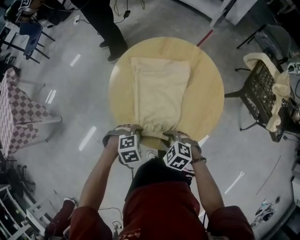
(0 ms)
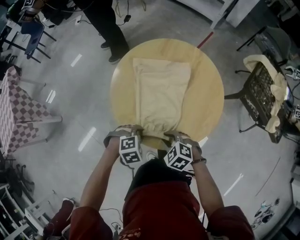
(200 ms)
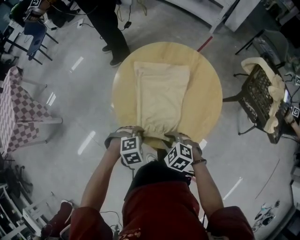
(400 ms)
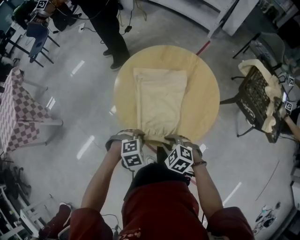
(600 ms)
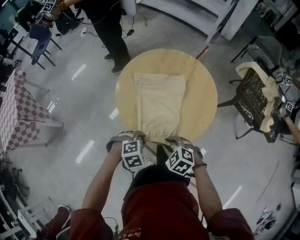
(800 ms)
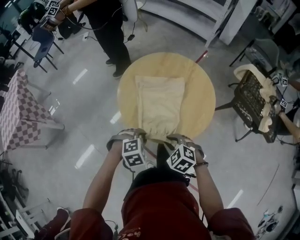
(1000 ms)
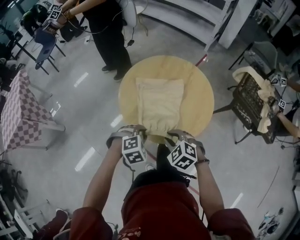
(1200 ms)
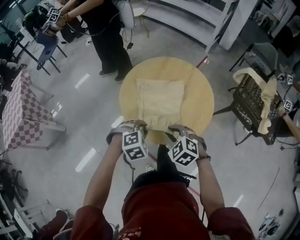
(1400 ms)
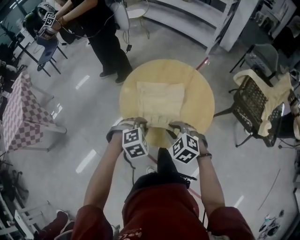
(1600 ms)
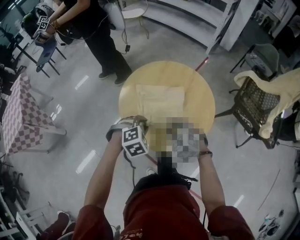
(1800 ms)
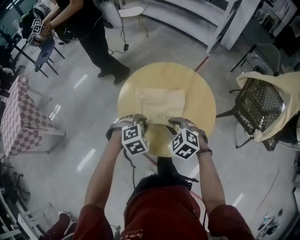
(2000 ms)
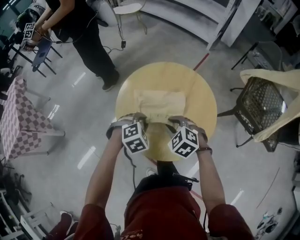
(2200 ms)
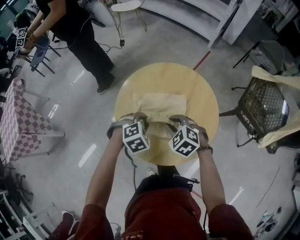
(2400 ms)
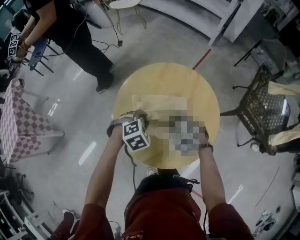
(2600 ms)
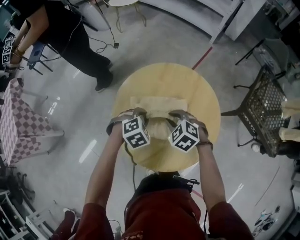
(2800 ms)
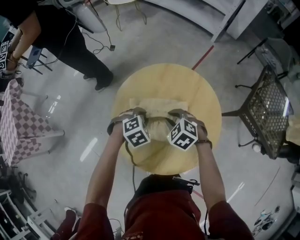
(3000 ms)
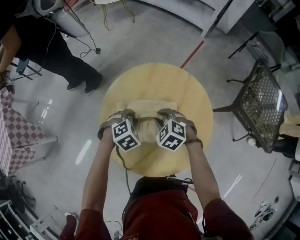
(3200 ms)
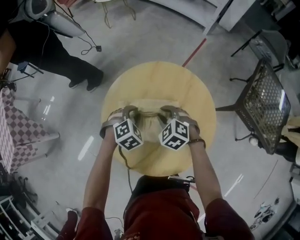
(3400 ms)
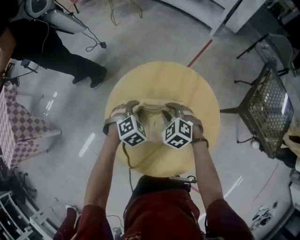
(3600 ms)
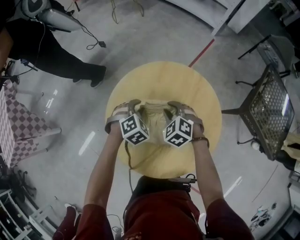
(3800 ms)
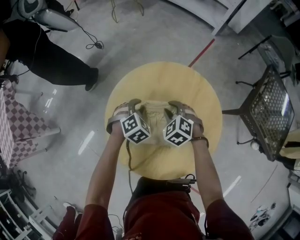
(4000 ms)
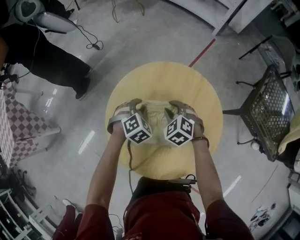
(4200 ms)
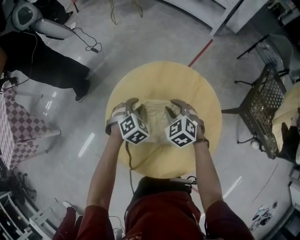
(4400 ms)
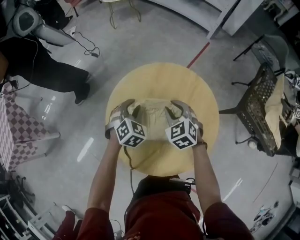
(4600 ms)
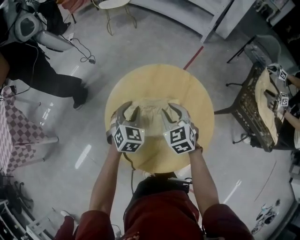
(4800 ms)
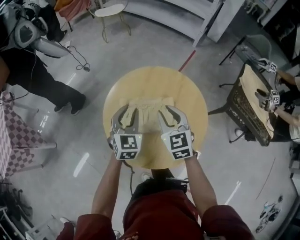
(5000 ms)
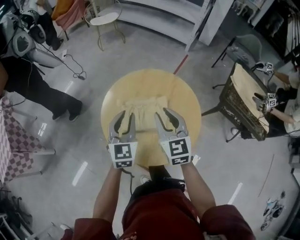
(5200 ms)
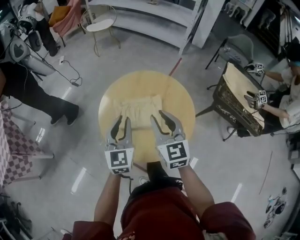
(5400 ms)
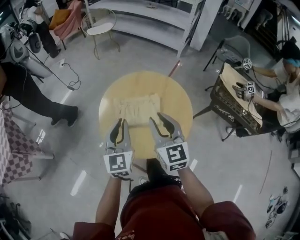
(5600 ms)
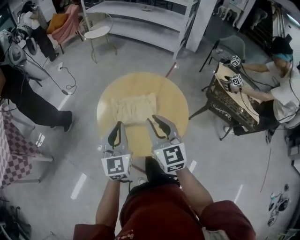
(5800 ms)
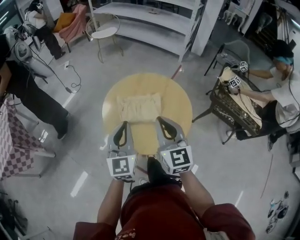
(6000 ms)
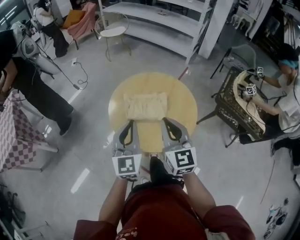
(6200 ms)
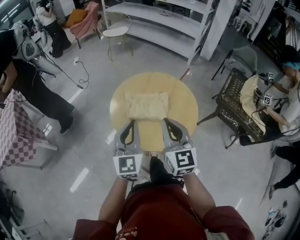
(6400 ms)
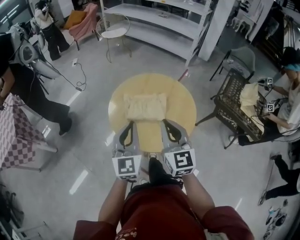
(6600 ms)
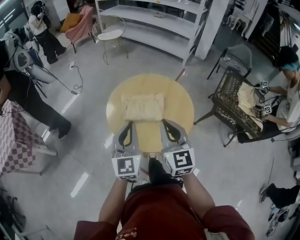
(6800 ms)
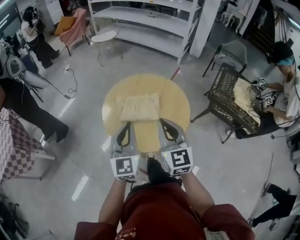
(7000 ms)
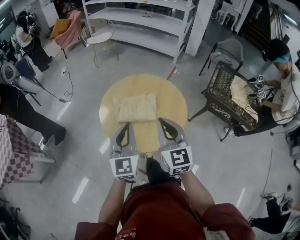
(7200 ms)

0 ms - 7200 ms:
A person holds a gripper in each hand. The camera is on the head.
0 ms - 1400 ms: The grippers both shift upward by some 10 cm.
1400 ms - 2800 ms: The two grippers go approximately 20 cm forward.
2800 ms - 4400 ms: Both grippers travel together forward, approximately 10 cm.
4400 ms - 5800 ms: Both grippers move backward and upward, roughly 35 cm. The right gripper angles its fingers upward, by approximately 40 degrees. The left gripper angles its fingers upward, by roughly 50 degrees, and closes up.
5800 ms - 7200 ms: The left gripper shifts by about 5 cm; the right gripper goes approximately 5 cm backward.

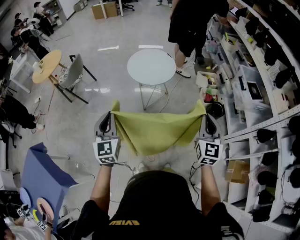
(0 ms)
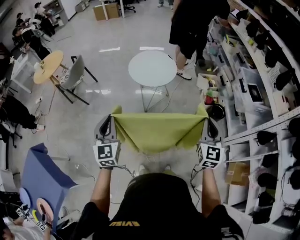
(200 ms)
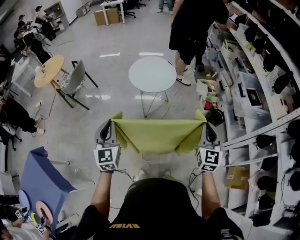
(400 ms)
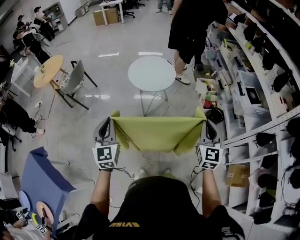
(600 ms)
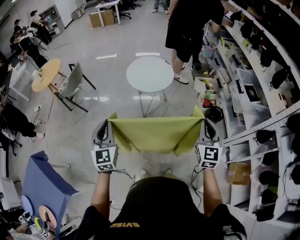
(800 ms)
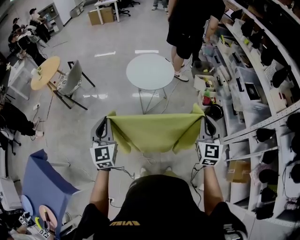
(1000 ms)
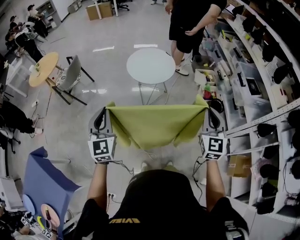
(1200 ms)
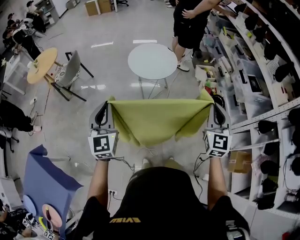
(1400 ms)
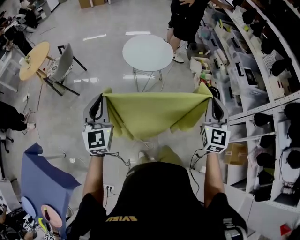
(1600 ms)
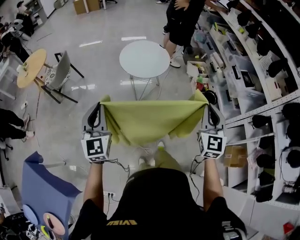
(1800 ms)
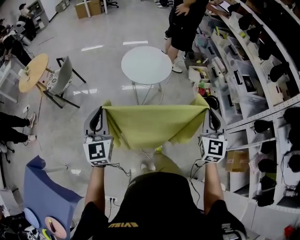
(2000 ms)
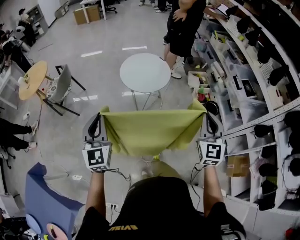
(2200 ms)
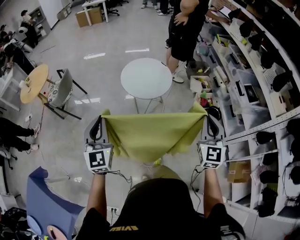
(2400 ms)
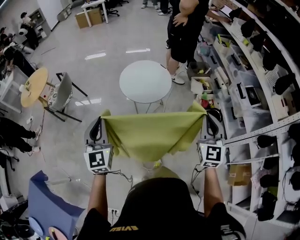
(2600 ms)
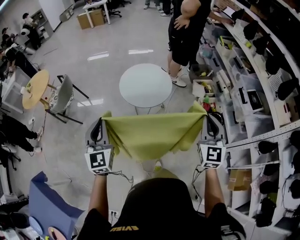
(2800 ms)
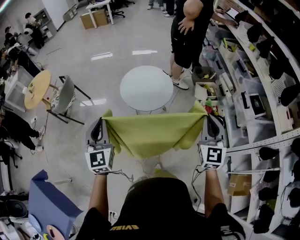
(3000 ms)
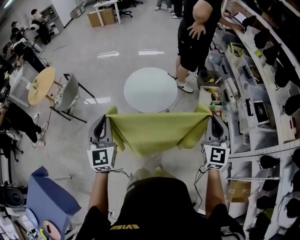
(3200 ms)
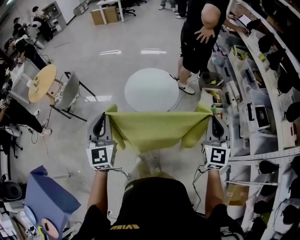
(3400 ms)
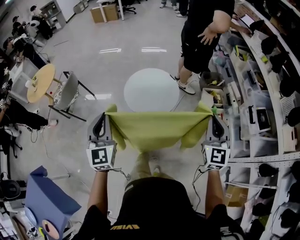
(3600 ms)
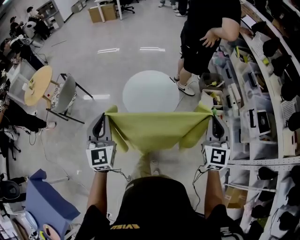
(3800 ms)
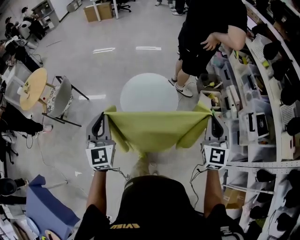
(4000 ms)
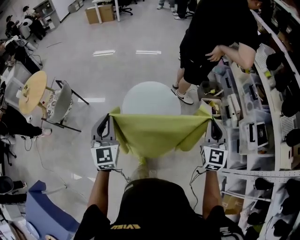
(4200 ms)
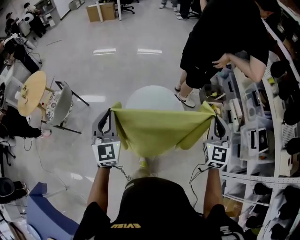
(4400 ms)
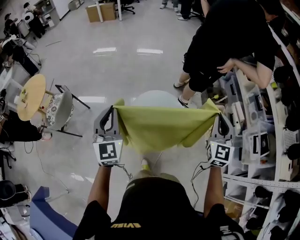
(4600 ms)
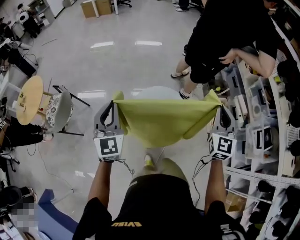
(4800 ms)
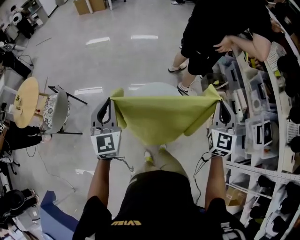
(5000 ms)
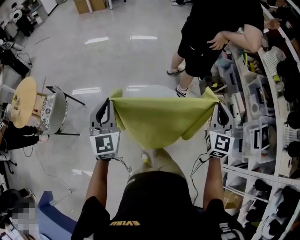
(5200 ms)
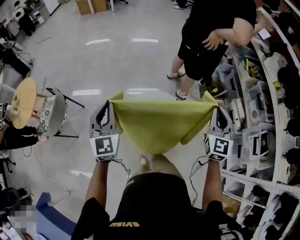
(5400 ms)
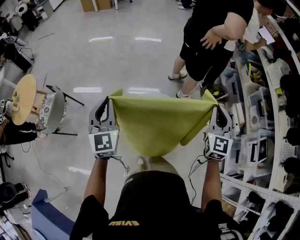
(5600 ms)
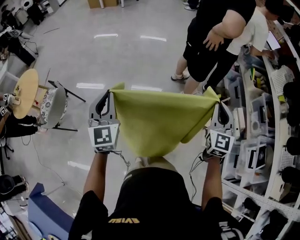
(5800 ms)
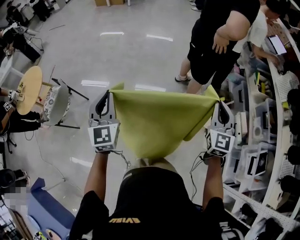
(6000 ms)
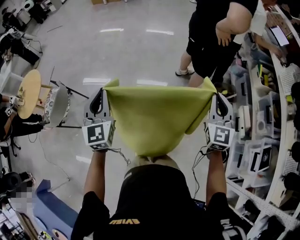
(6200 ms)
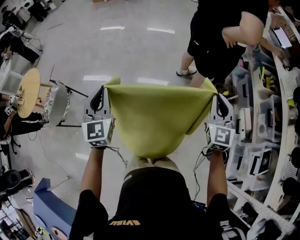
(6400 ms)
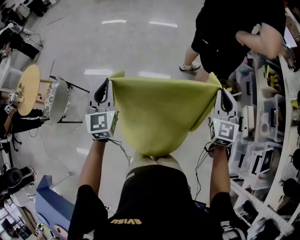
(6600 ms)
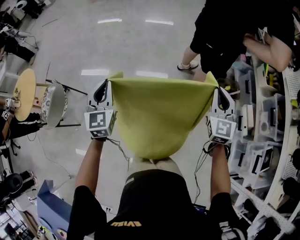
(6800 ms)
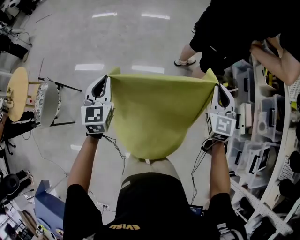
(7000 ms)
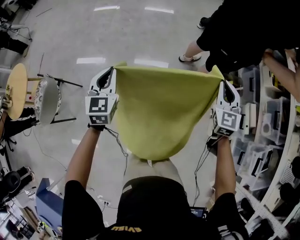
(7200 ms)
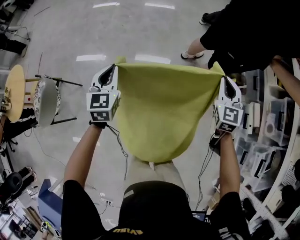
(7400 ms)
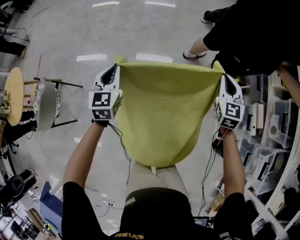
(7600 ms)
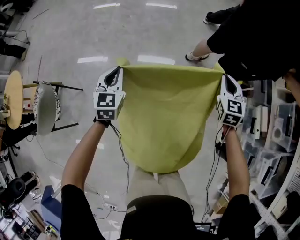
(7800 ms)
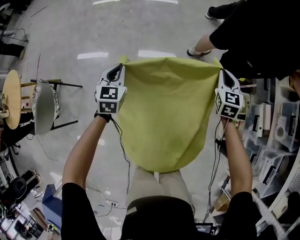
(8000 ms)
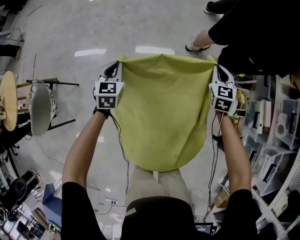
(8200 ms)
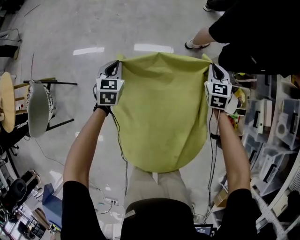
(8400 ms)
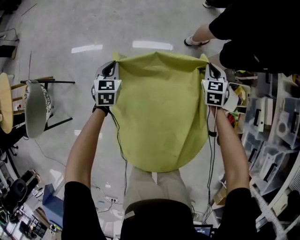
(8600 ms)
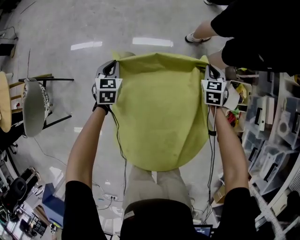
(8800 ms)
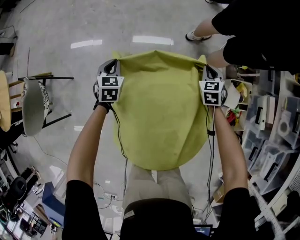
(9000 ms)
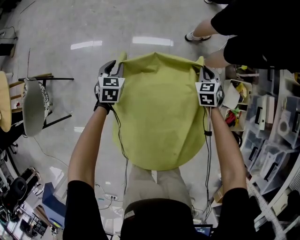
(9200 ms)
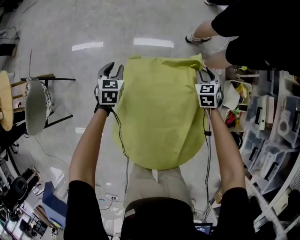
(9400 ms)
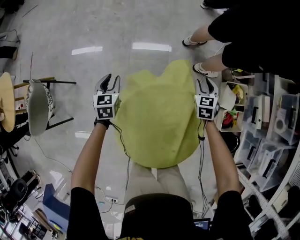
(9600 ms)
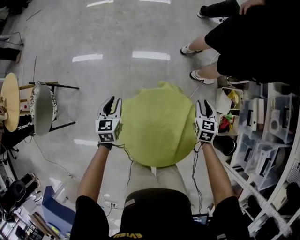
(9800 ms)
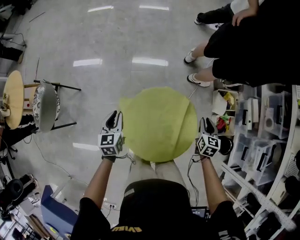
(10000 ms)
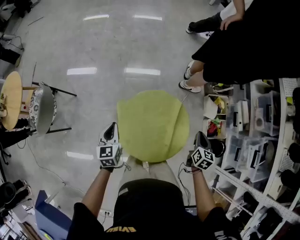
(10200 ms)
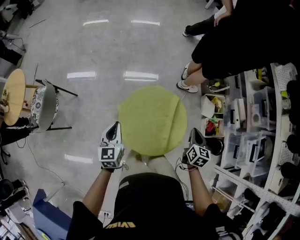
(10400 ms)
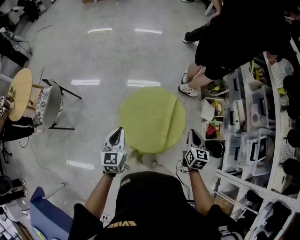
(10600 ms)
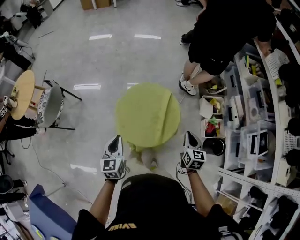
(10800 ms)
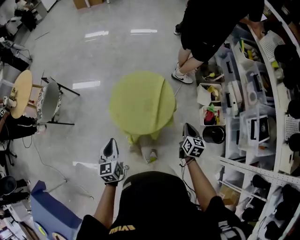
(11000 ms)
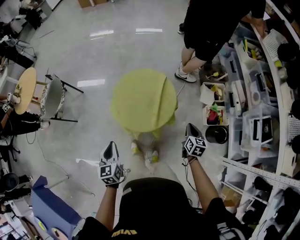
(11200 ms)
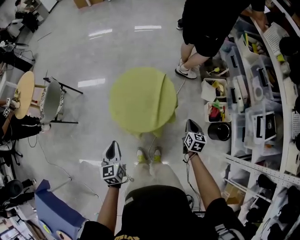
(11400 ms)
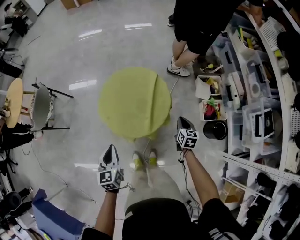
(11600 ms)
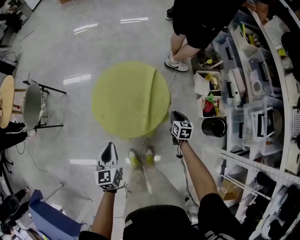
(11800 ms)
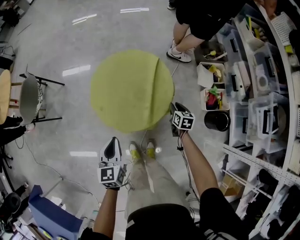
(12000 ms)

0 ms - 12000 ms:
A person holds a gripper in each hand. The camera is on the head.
0 ms - 1600 ms: Both grippers move to the left, some 10 cm.
1600 ms - 3000 ms: Both grippers travel together forward, roughly 20 cm.
3000 ms - 4400 ms: The grippers both shift forward by some 35 cm.
4400 ms - 6000 ms: The grippers both shift forward by approximately 25 cm.
6000 ms - 7600 ms: Both grippers travel together forward and downward, some 35 cm. The left gripper swivels some 20 degrees.
7600 ms - 9000 ms: The grippers both shift downward by about 25 cm. The right gripper changes its angle by about 20 degrees, while the left gripper turns by approximately 20 degrees.
9000 ms - 10400 ms: Both grippers move backward and upward, some 50 cm. The right gripper changes its angle by roughly 40 degrees, and opens, then closes again. The left gripper swivels roughly 20 degrees, and opens, then closes again.
10400 ms - 12000 ms: The left gripper is displaced backward, to the right and downward by approximately 30 cm; the right gripper heads downward, covering approximately 30 cm, and opens its fingers.

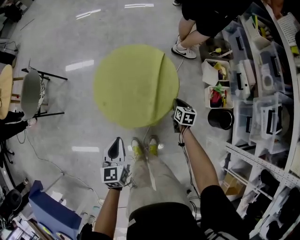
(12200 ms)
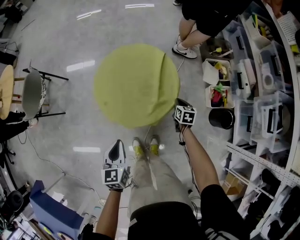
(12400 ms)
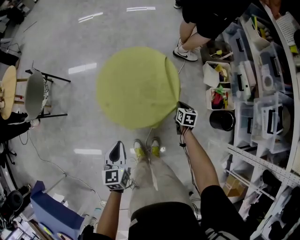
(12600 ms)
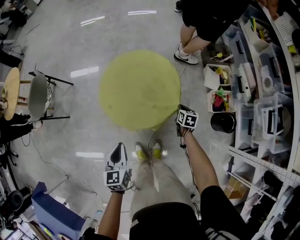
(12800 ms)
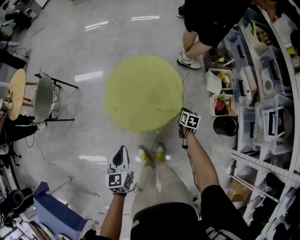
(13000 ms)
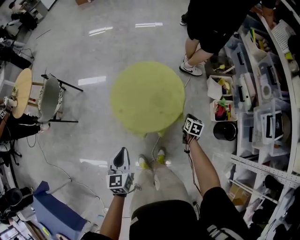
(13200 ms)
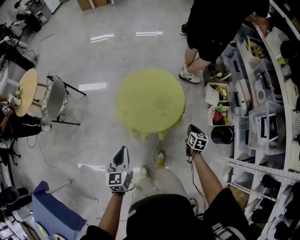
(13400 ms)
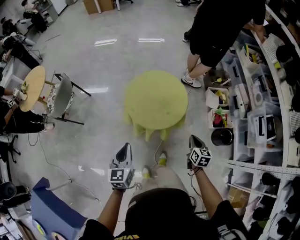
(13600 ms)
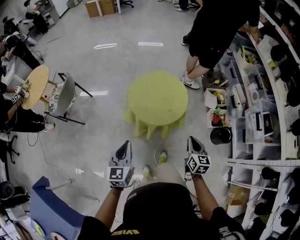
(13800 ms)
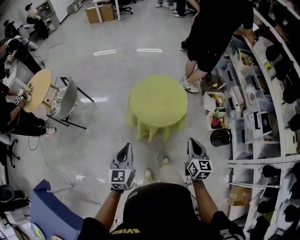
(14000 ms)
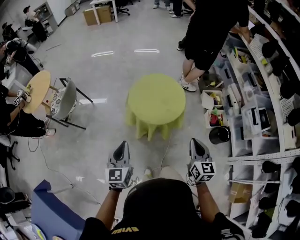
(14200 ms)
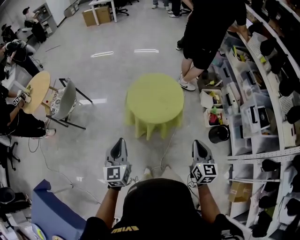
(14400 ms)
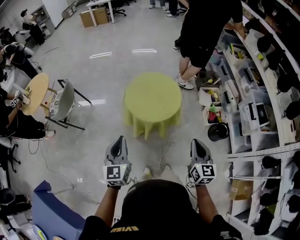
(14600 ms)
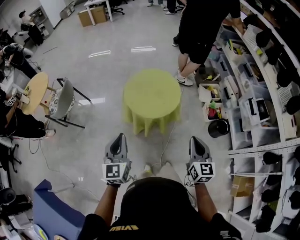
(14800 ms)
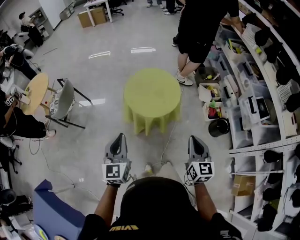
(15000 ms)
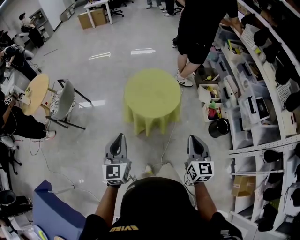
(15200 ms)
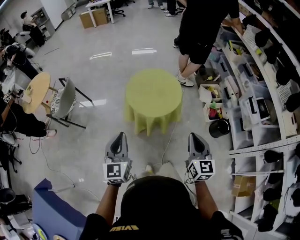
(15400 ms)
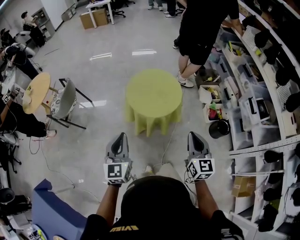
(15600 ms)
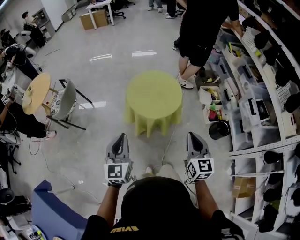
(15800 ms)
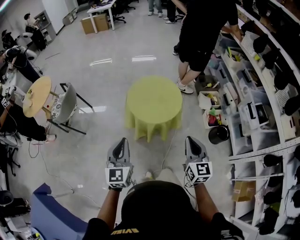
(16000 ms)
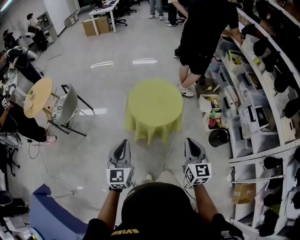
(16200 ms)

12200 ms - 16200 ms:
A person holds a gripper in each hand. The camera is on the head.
12200 ms - 13600 ms: The left gripper travels upward, backward and to the left by roughly 20 cm; the right gripper heads upward and backward, covering about 35 cm.
13600 ms - 14800 ms: The left gripper heads upward and backward, covering roughly 15 cm. The right gripper heads upward and backward, covering some 25 cm, and turns by roughly 20 degrees.
14800 ms - 16200 ms: The right gripper shifts roughly 5 cm to the left.
